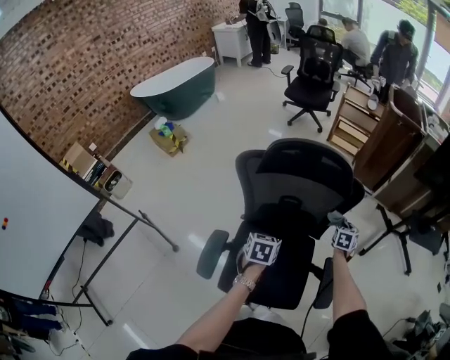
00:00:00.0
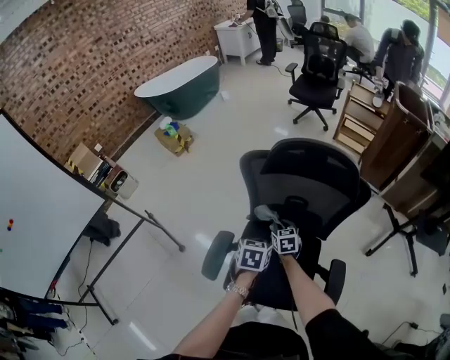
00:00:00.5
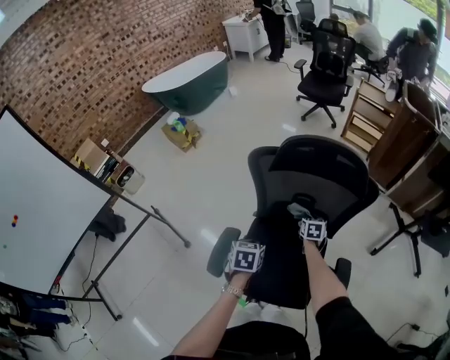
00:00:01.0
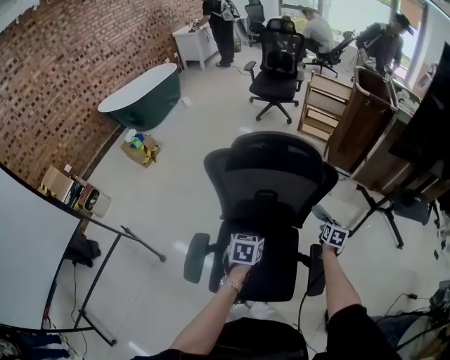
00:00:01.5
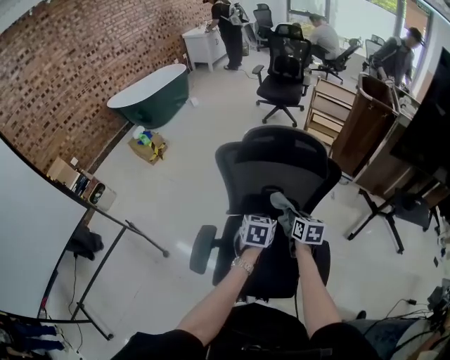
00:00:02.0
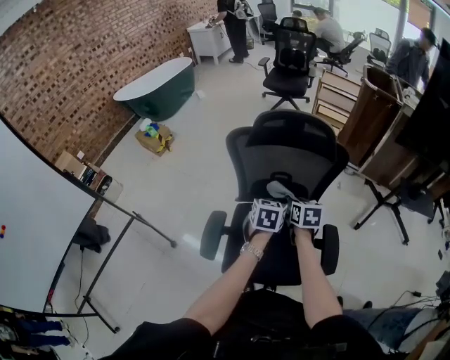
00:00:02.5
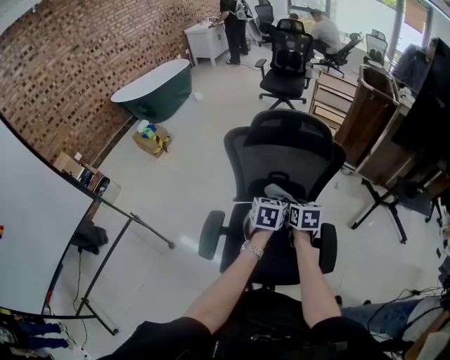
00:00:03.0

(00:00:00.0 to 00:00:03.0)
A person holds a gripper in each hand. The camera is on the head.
00:00:01.5 - 00:00:03.0: The left gripper moves upward, roughly 5 cm. The right gripper heads to the left and upward, covering some 30 cm, and turns by some 30 degrees.

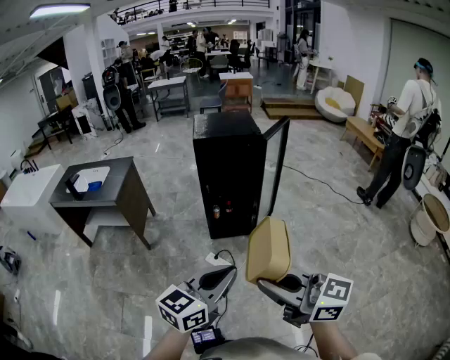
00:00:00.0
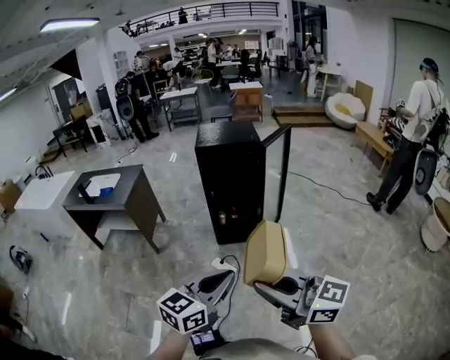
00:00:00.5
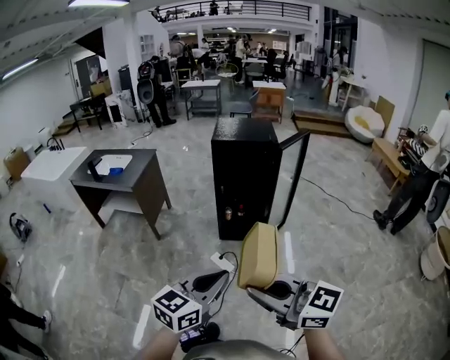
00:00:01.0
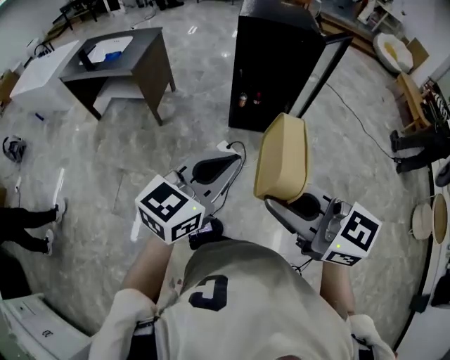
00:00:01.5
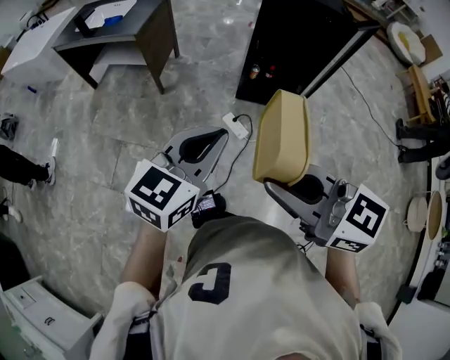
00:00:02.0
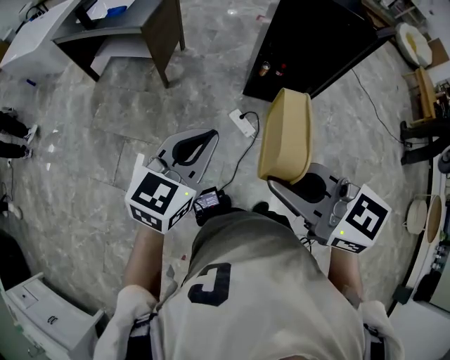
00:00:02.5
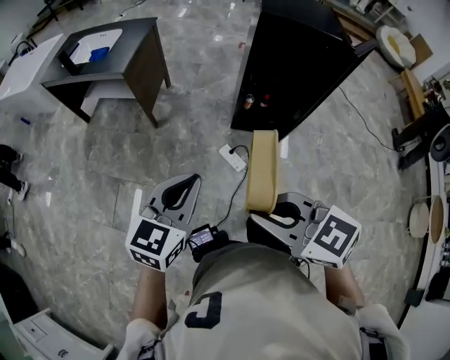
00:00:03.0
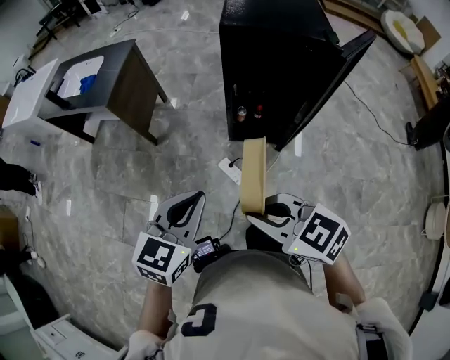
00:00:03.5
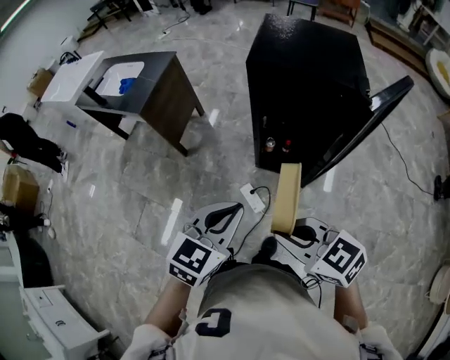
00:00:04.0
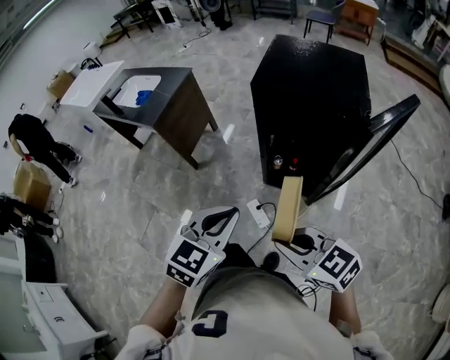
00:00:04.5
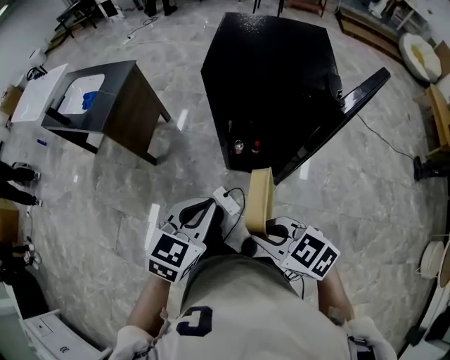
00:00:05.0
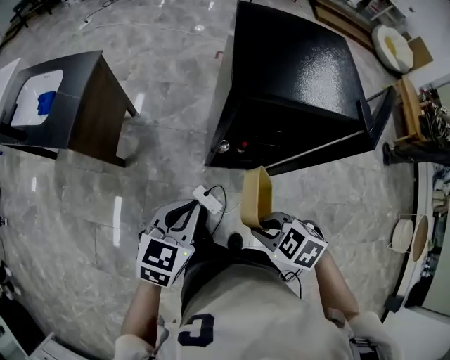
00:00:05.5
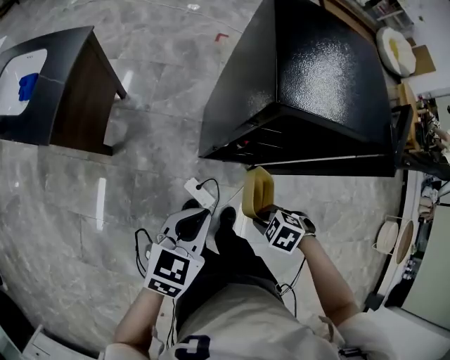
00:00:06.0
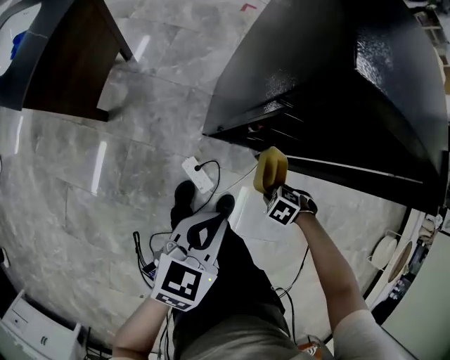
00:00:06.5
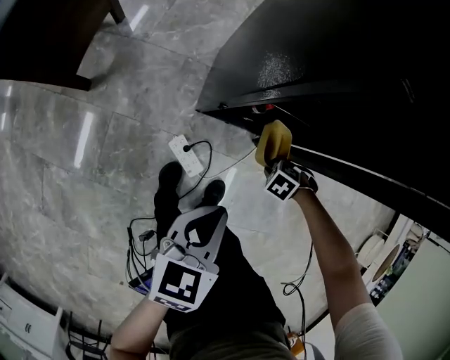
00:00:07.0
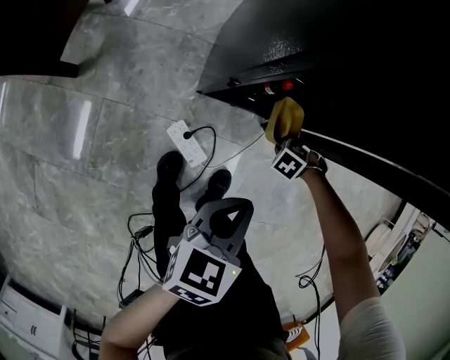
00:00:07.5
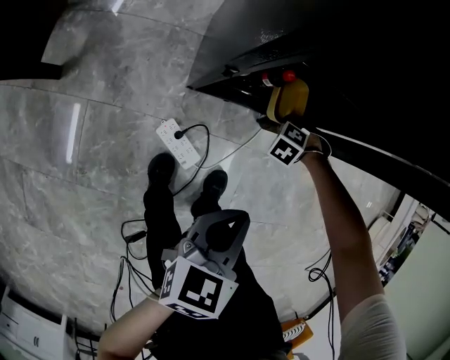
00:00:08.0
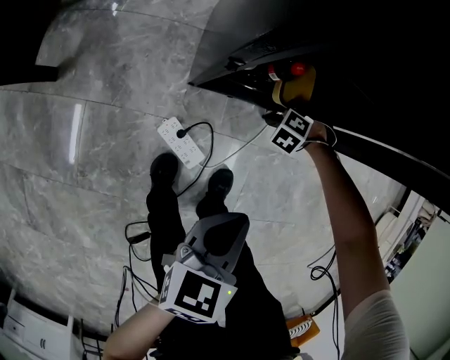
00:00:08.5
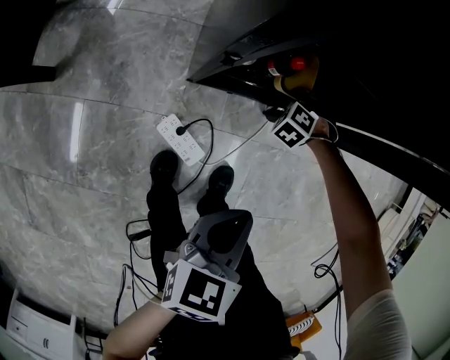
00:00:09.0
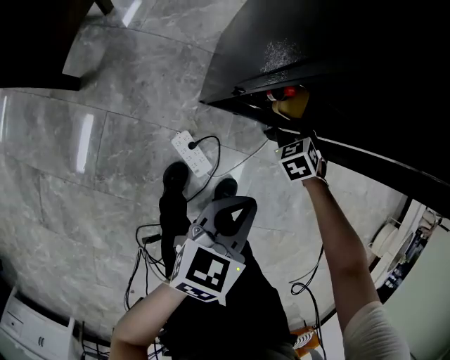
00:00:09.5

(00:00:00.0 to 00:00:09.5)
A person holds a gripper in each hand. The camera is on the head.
00:00:00.0 - 00:00:02.0: The left gripper shifts about 20 cm to the left, forward and downward, and rotates some 20 degrees. Meanwhile the right gripper travels to the left, downward and forward by some 15 cm, and changes its angle by roughly 30 degrees.
00:00:02.0 - 00:00:04.0: The left gripper shifts roughly 30 cm to the right and forward. Meanwhile the right gripper heads to the right, forward and downward, covering approximately 35 cm.
00:00:04.0 - 00:00:05.5: Both grippers move forward and downward, some 20 cm. The right gripper angles its fingers downward, by roughly 30 degrees.
00:00:05.5 - 00:00:07.5: The left gripper shifts some 35 cm downward, and turns by roughly 20 degrees; the right gripper goes approximately 60 cm downward, and swivels some 40 degrees.
00:00:07.5 - 00:00:09.5: The right gripper moves roughly 10 cm, changes its angle by roughly 40 degrees, and opens up.

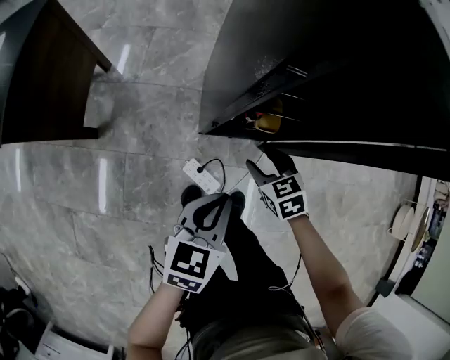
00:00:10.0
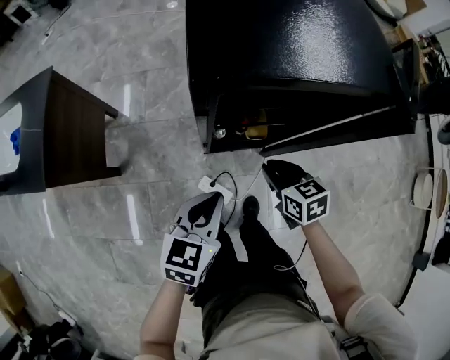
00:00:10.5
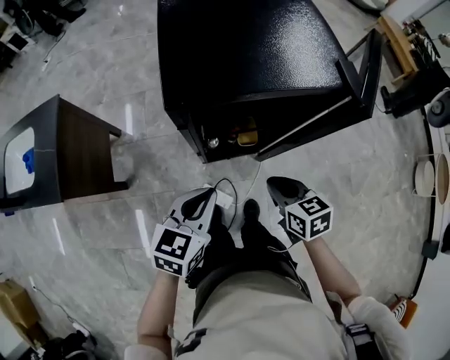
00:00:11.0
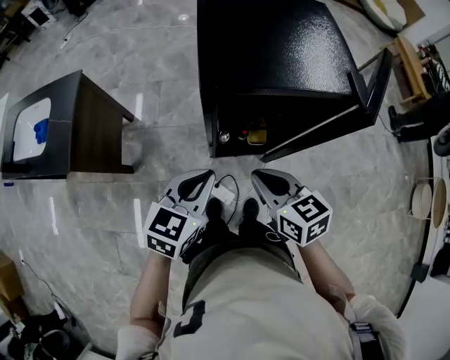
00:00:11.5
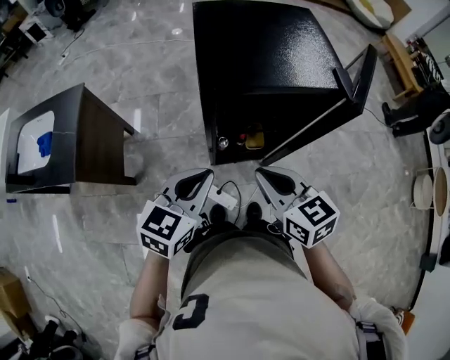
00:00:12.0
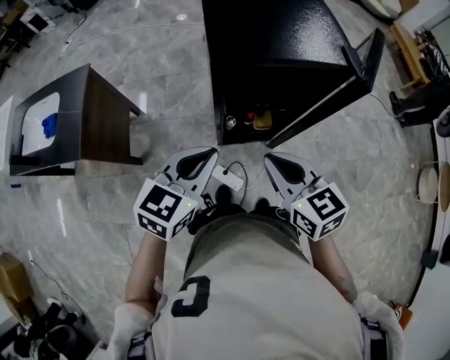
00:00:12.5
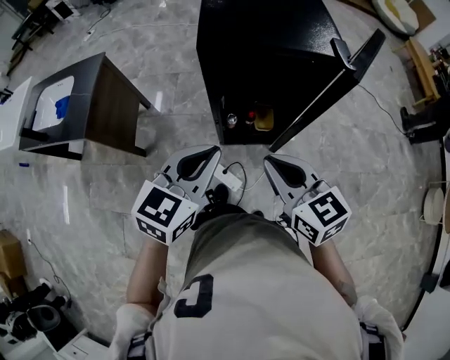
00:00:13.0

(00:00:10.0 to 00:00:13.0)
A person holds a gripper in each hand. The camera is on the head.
00:00:10.0 - 00:00:11.5: Both grippers move upward, approximately 30 cm. The right gripper rotates approximately 30 degrees, and closes up.
00:00:11.5 - 00:00:13.0: Both grippers travel together backward and upward, approximately 10 cm.

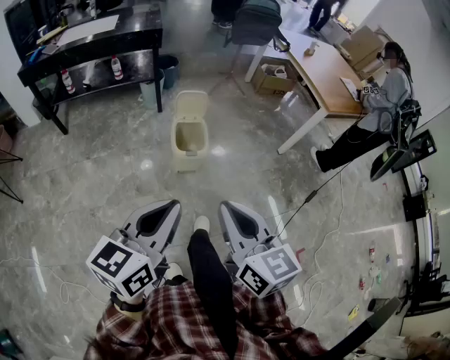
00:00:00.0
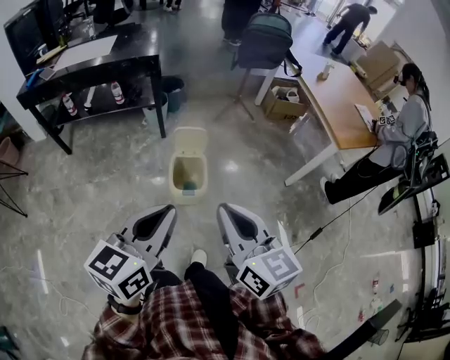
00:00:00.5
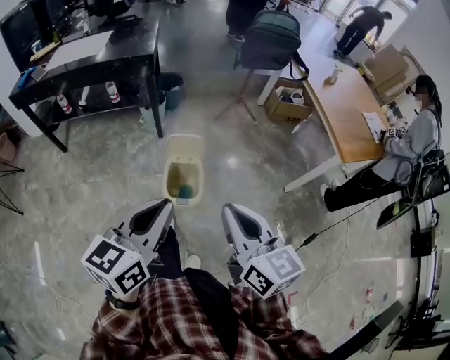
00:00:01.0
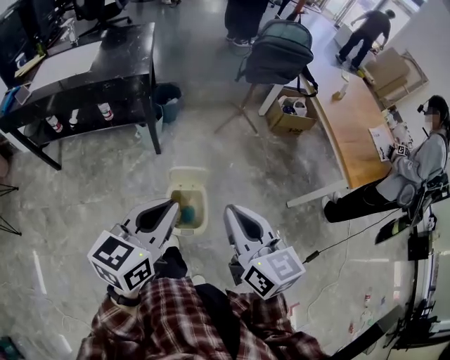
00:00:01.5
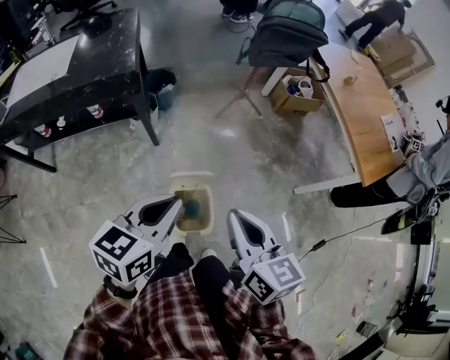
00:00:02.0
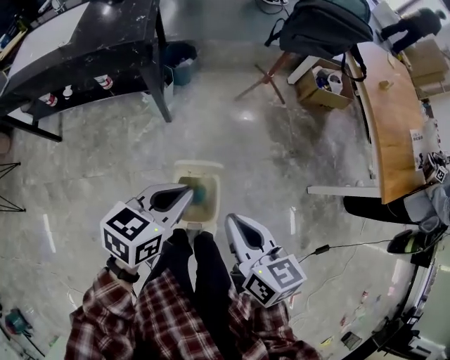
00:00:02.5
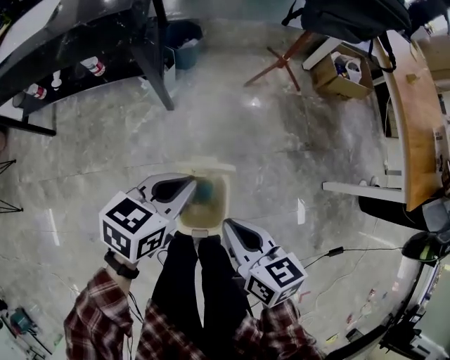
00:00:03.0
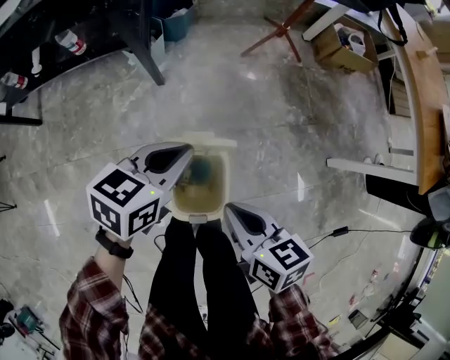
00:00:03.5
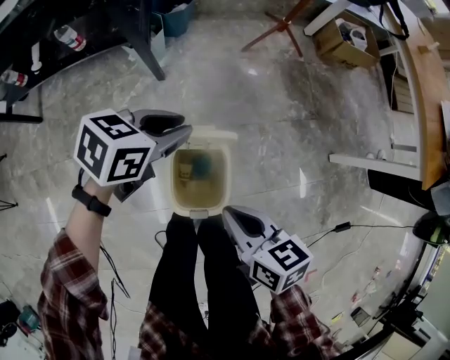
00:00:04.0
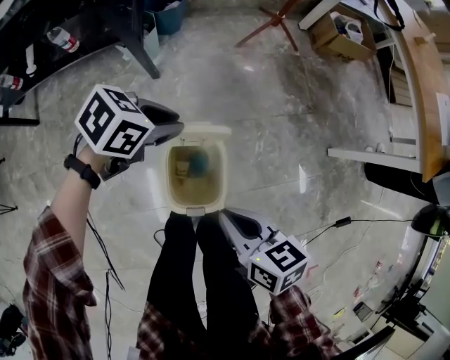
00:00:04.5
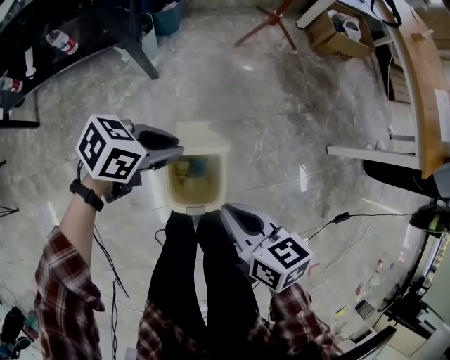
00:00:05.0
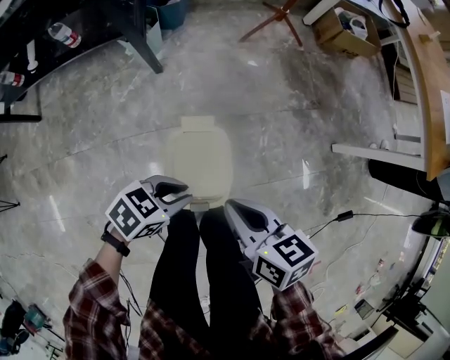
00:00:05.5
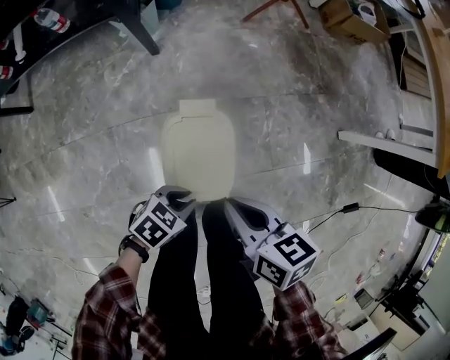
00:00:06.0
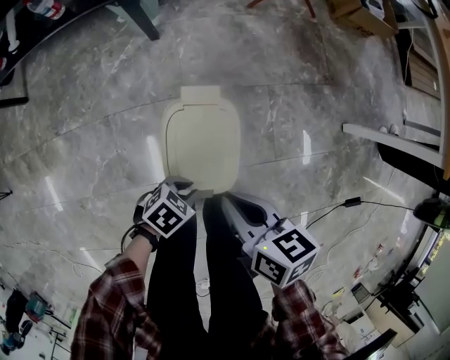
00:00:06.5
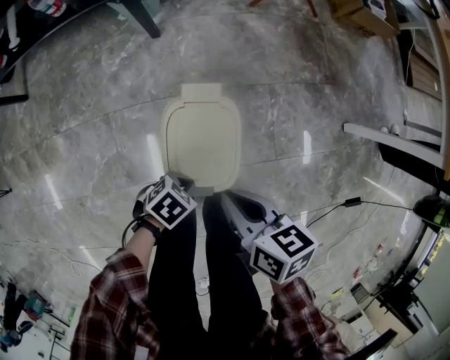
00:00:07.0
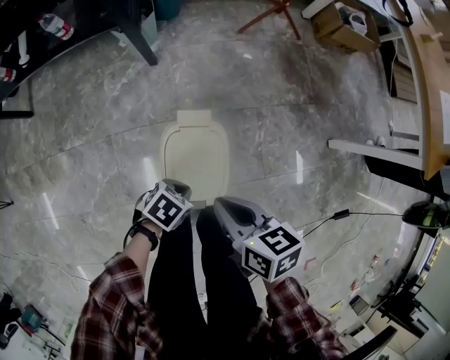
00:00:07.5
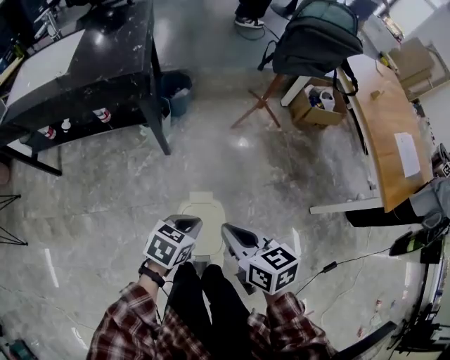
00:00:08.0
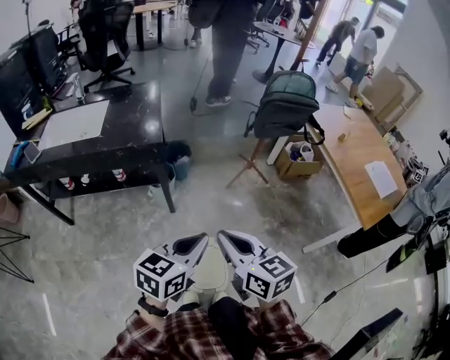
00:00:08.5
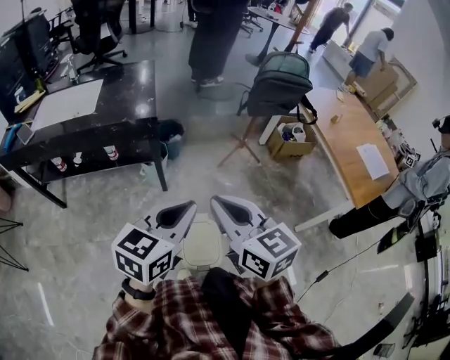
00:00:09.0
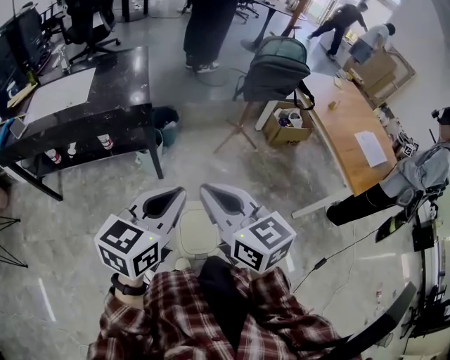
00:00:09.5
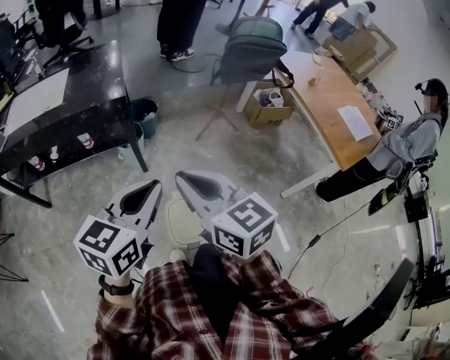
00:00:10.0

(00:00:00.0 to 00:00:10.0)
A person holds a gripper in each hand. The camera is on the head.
00:00:00.0 - 00:00:02.0: The two grippers travel together, forward, about 60 cm.
00:00:02.0 - 00:00:04.0: The right gripper is displaced downward by some 30 cm, and swivels about 30 degrees, while the left gripper is displaced downward and forward by roughly 35 cm, and rotates about 20 degrees.
00:00:04.0 - 00:00:06.0: The right gripper ends up approximately 5 cm from where it was, while the left gripper shifts by roughly 30 cm, and turns by approximately 20 degrees.
00:00:06.0 - 00:00:08.0: The grippers both shift upward by some 20 cm. The left gripper changes its angle by some 20 degrees.
00:00:08.0 - 00:00:10.0: Both grippers move upward, about 30 cm. The right gripper turns by about 30 degrees. Meanwhile the left gripper points its fingers about 30 degrees further upward.
